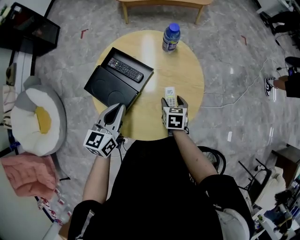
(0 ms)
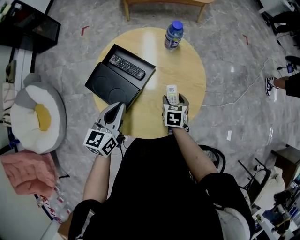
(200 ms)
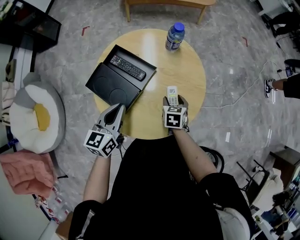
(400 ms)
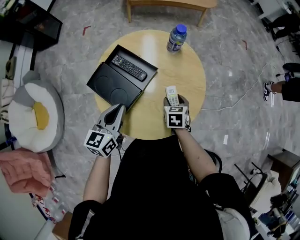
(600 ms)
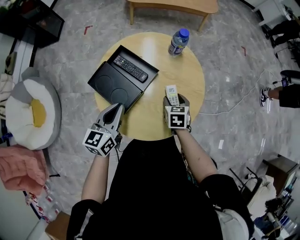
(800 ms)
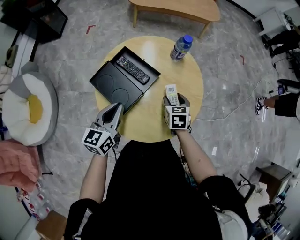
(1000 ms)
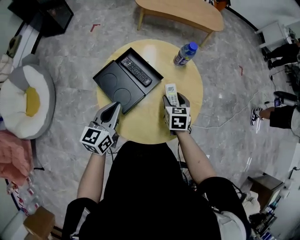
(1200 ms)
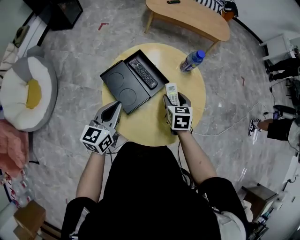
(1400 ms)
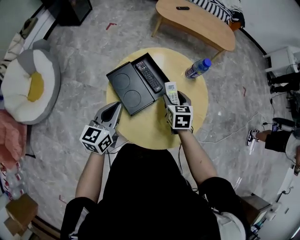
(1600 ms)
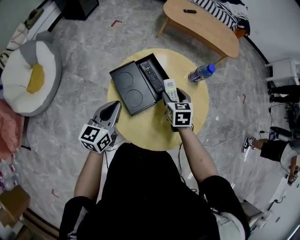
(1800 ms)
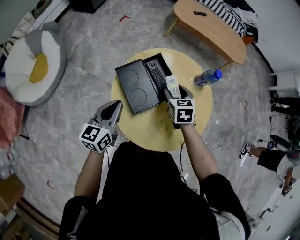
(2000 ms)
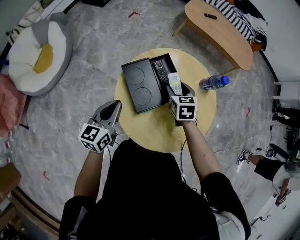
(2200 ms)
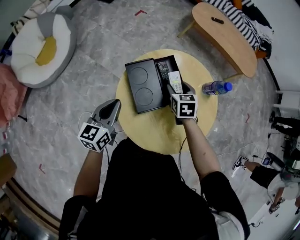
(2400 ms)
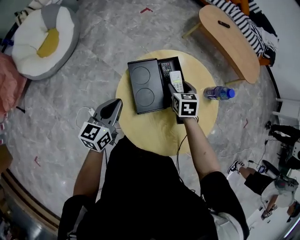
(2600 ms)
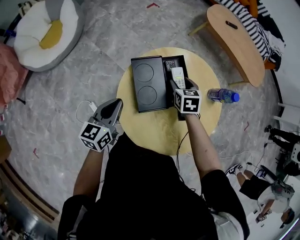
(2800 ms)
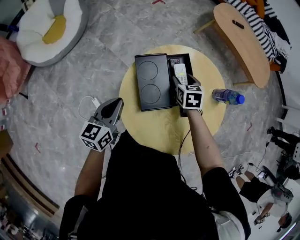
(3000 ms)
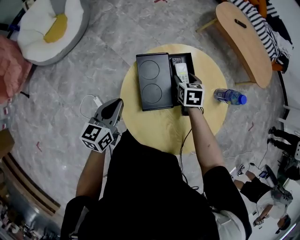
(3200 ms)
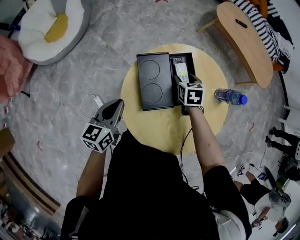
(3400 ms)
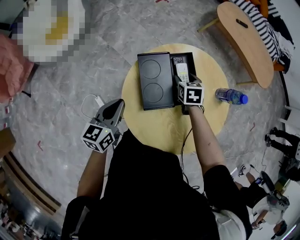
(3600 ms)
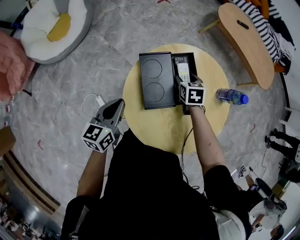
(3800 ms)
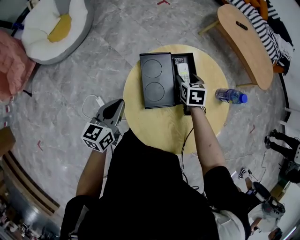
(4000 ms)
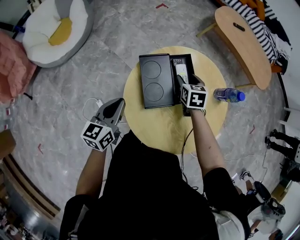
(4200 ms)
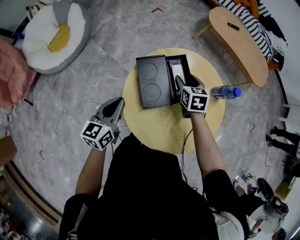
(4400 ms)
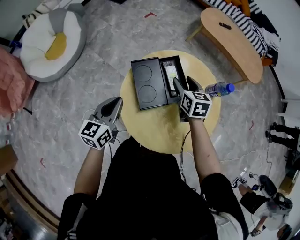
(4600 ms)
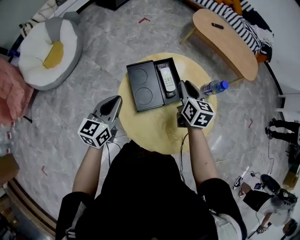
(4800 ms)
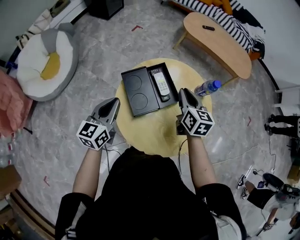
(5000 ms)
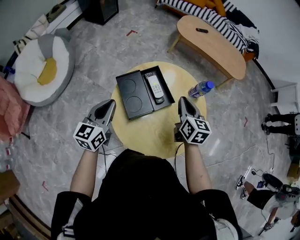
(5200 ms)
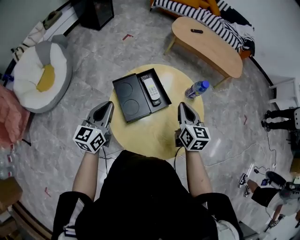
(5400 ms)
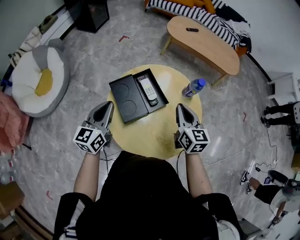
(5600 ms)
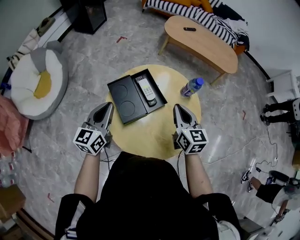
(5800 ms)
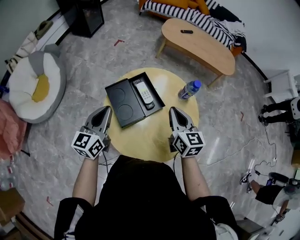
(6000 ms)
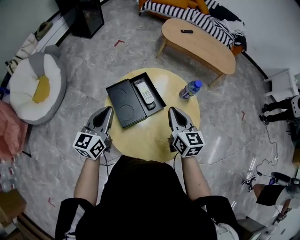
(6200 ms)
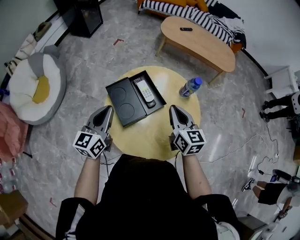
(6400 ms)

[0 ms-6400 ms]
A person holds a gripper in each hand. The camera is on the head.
0 ms to 1600 ms: The left gripper moves to the left, approximately 10 cm; the right gripper goes roughly 15 cm upward, to the left and forward, and changes its angle by roughly 30 degrees.
1600 ms to 3200 ms: The left gripper is displaced to the left and downward by some 10 cm, and changes its angle by about 30 degrees. The right gripper moves forward, to the left and downward, roughly 15 cm, and swivels roughly 30 degrees.
3200 ms to 4800 ms: The right gripper goes roughly 15 cm upward, rotates about 30 degrees, and closes its fingers; the left gripper is displaced upward by some 5 cm.
4800 ms to 6400 ms: The left gripper goes some 5 cm upward, while the right gripper travels backward, to the right and upward by approximately 10 cm.

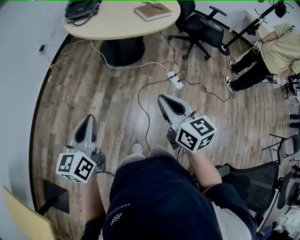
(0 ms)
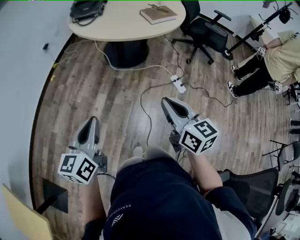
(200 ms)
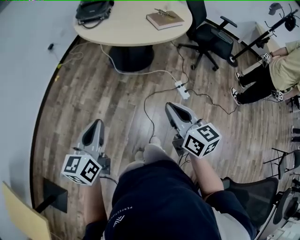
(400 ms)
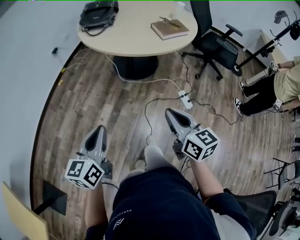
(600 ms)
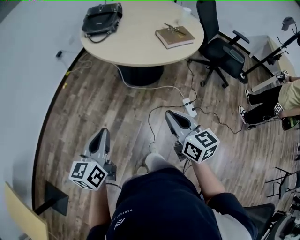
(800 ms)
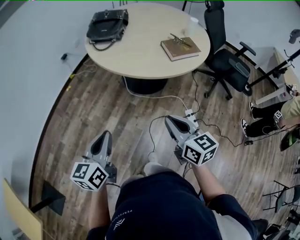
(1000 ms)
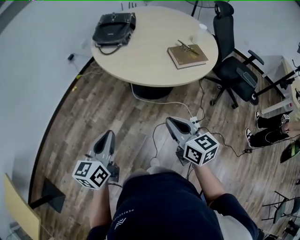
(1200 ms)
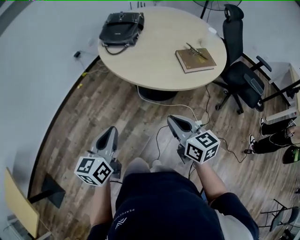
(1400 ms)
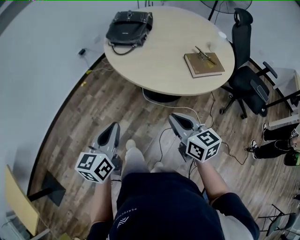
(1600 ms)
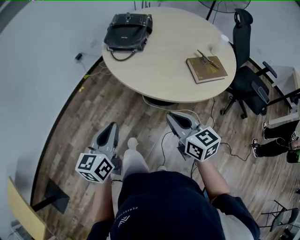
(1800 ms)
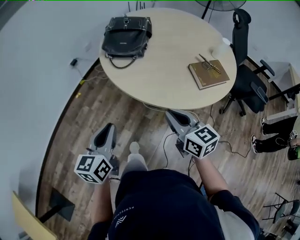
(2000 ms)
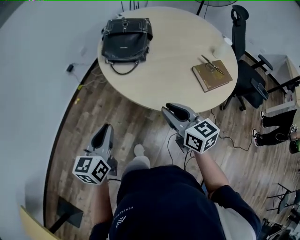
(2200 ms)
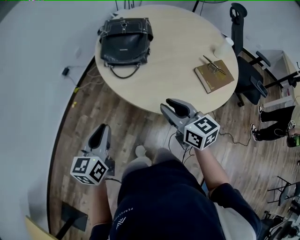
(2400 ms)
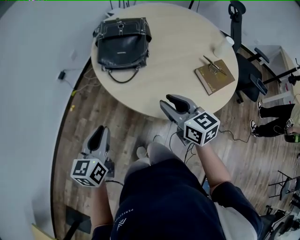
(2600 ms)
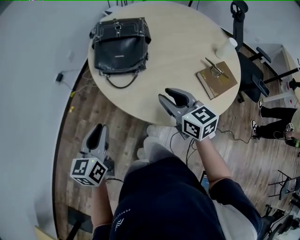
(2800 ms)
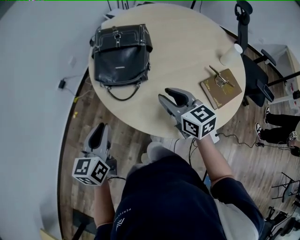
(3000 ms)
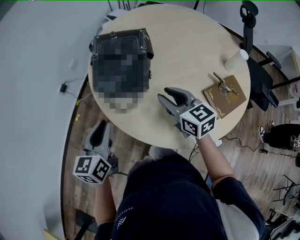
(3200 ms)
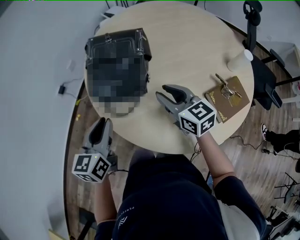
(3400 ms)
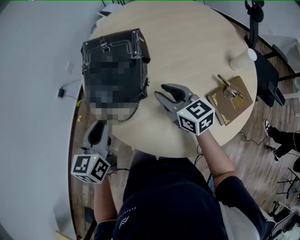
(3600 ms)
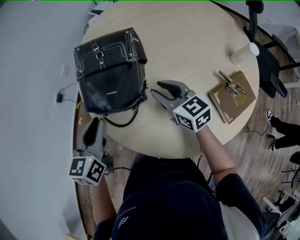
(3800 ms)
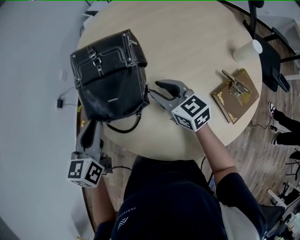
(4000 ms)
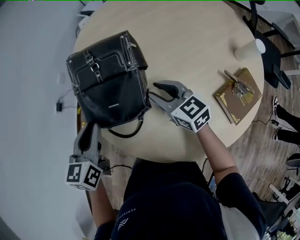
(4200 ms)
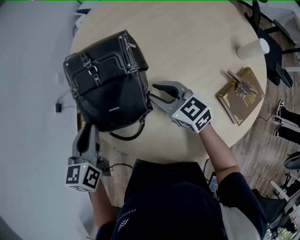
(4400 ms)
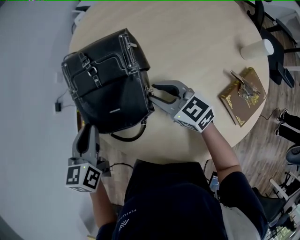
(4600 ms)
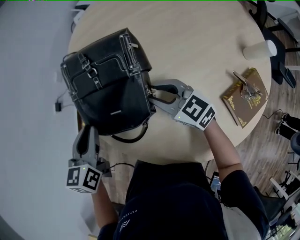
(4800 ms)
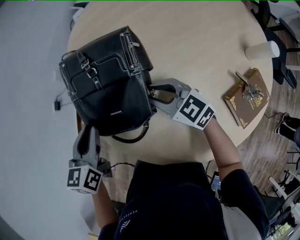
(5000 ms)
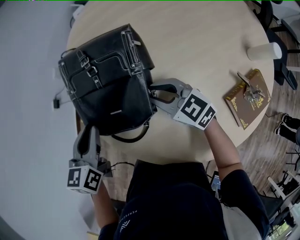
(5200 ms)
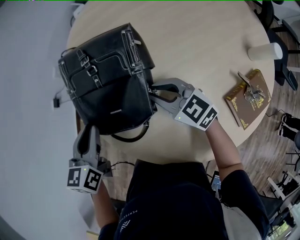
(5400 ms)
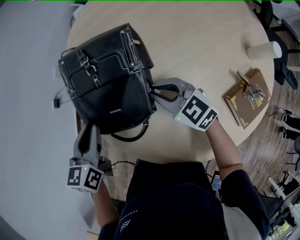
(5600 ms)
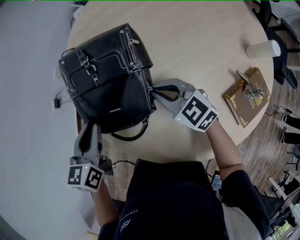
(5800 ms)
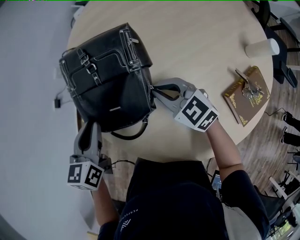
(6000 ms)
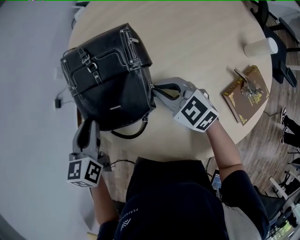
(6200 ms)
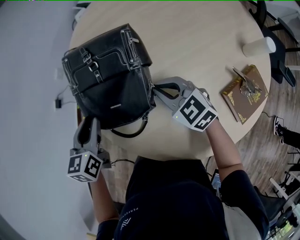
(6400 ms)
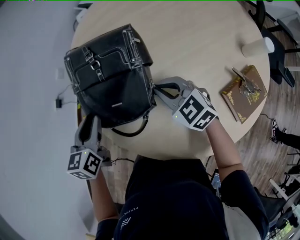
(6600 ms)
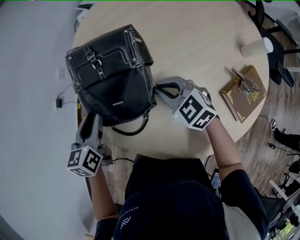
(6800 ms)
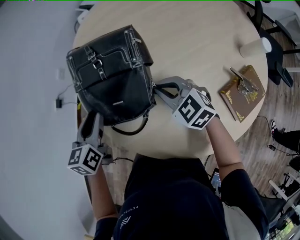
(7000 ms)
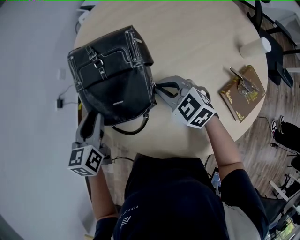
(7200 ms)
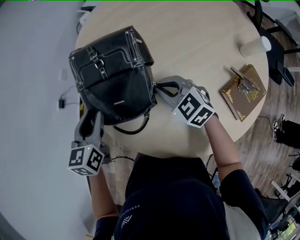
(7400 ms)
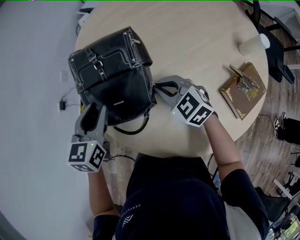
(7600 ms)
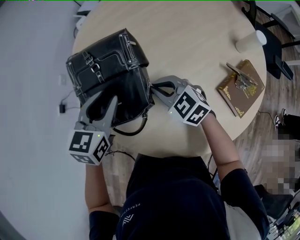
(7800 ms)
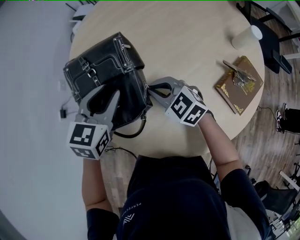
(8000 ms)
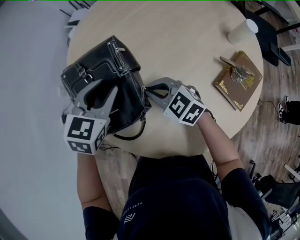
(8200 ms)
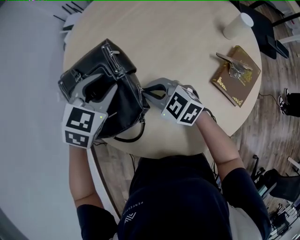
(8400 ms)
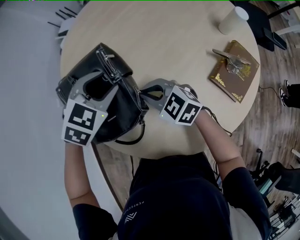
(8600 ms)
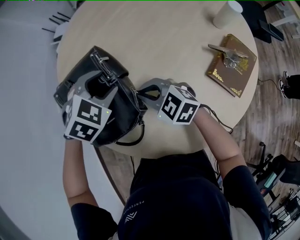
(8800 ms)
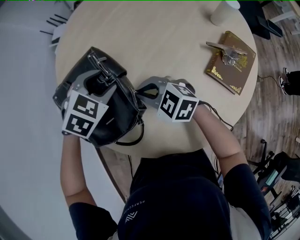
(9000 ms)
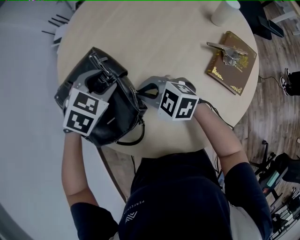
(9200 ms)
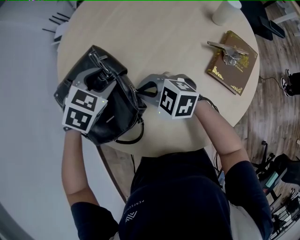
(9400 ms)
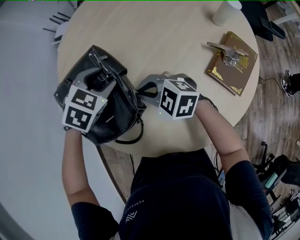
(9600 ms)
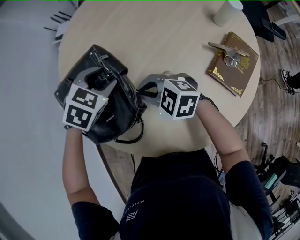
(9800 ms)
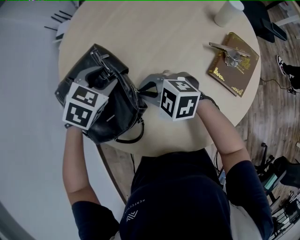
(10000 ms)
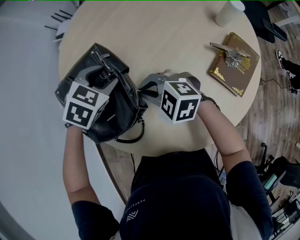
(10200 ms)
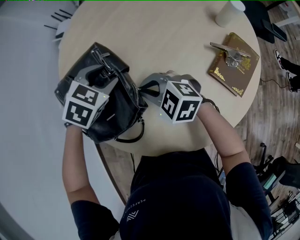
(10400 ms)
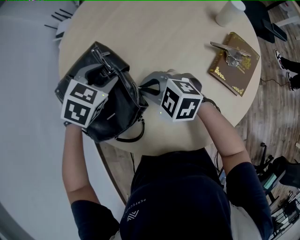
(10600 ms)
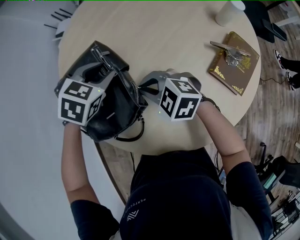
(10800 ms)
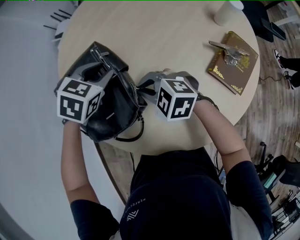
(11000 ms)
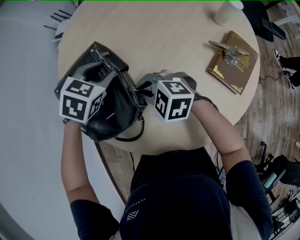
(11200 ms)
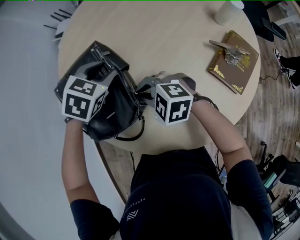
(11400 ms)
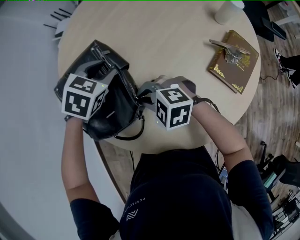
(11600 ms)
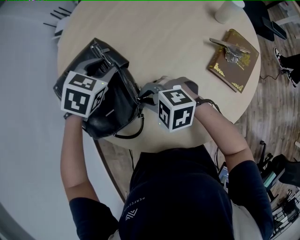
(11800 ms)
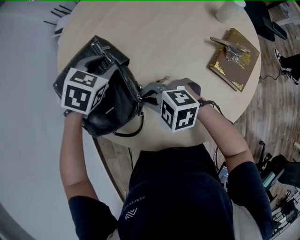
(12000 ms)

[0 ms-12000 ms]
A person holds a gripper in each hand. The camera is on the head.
0 ms to 1600 ms: The grippers both shift forward by some 30 cm. The right gripper rotates approximately 20 degrees.
1600 ms to 3000 ms: The grippers both shift forward by approximately 35 cm. The right gripper opens.
3000 ms to 4400 ms: The left gripper goes roughly 25 cm forward, while the right gripper travels forward and downward by about 20 cm.
4400 ms to 6000 ms: The right gripper closes up.
6000 ms to 7600 ms: The grippers make only small movements.
7600 ms to 9000 ms: The left gripper shifts some 20 cm to the right and forward, twists approximately 50 degrees clockwise, seen from behind, and opens.
9000 ms to 10400 ms: There are only small adjustments of the grippers.
10400 ms to 12000 ms: The right gripper is displaced backward by about 5 cm.

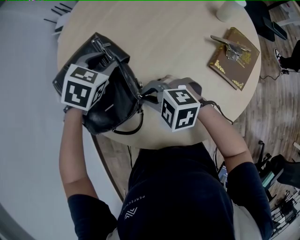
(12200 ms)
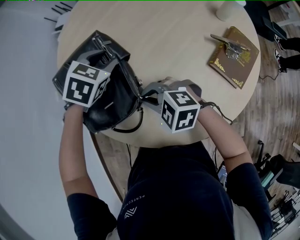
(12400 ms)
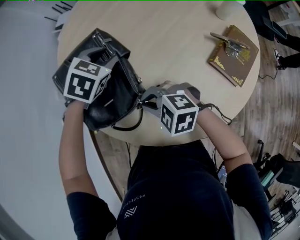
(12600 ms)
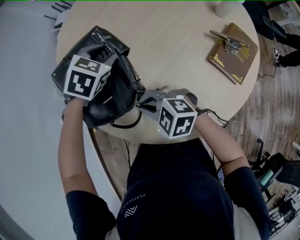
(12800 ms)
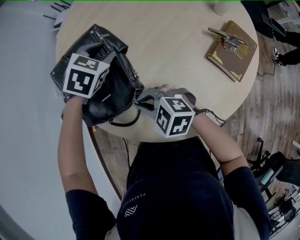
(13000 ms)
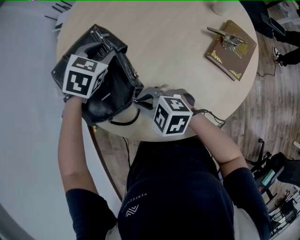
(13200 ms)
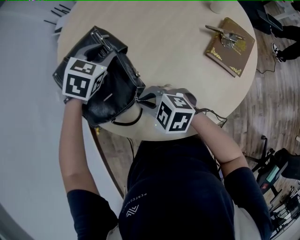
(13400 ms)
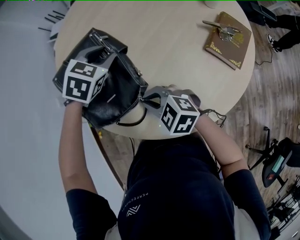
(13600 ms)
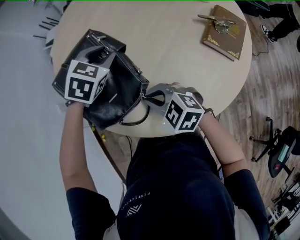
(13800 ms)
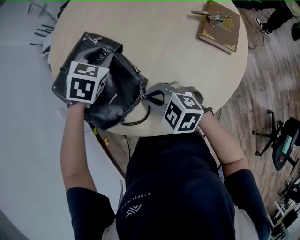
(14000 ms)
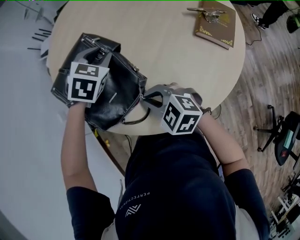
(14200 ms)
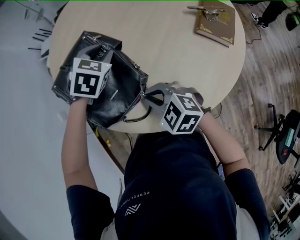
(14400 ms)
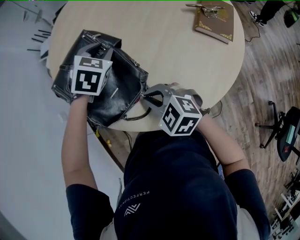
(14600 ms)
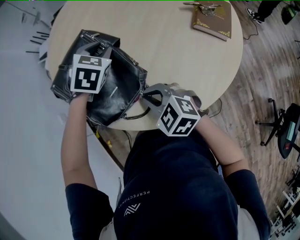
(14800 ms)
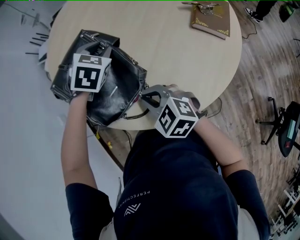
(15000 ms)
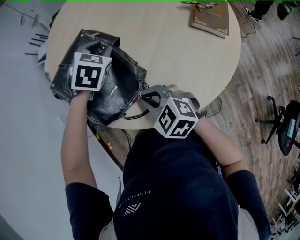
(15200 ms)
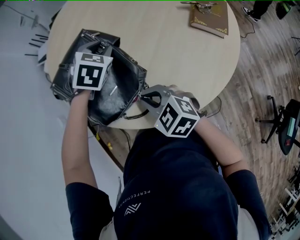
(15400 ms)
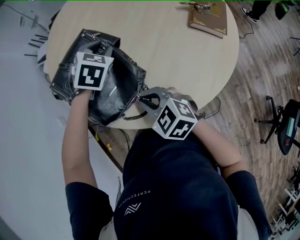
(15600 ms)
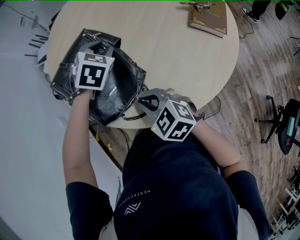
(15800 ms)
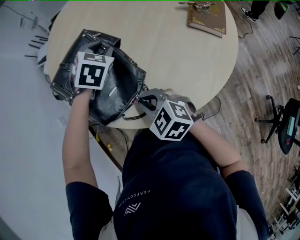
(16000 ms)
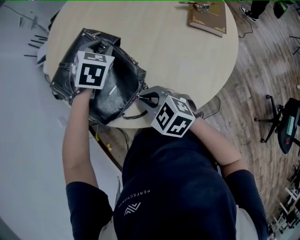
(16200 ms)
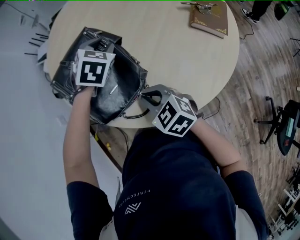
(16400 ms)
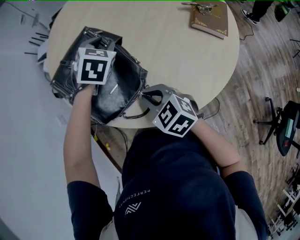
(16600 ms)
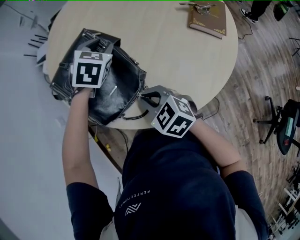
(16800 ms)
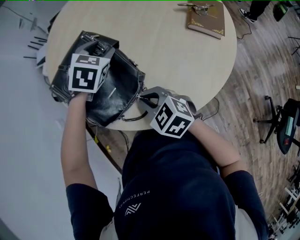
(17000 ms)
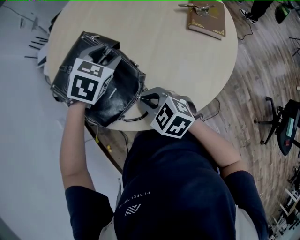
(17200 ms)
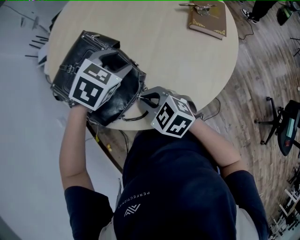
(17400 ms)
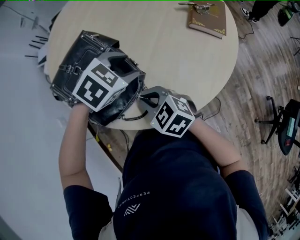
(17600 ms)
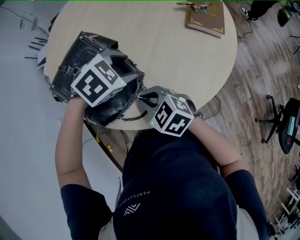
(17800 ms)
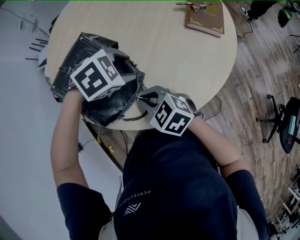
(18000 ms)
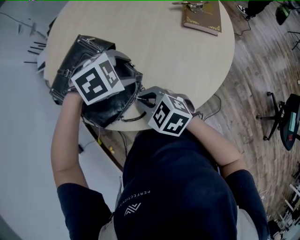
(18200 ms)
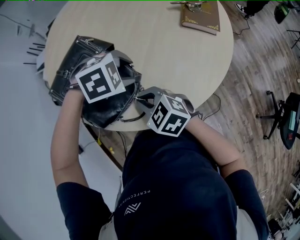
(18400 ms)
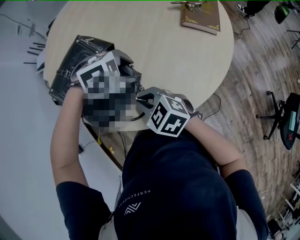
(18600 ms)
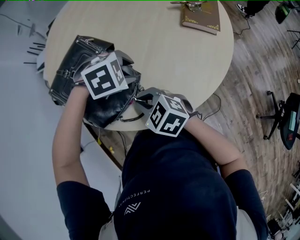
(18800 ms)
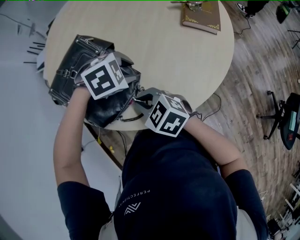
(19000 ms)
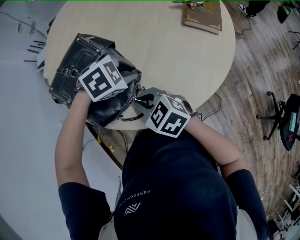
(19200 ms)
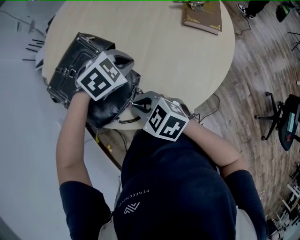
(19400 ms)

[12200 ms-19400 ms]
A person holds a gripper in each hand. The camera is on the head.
12200 ms to 13600 ms: The right gripper ends up approximately 5 cm from where it was.
13600 ms to 15000 ms: The right gripper swivels approximately 20 degrees.
15000 ms to 16600 ms: The grippers make only small movements.
16600 ms to 18000 ms: The left gripper ends up about 15 cm from where it was, and turns by about 50 degrees.
18000 ms to 19400 ms: The left gripper closes.
